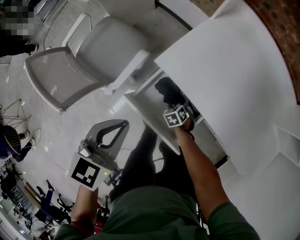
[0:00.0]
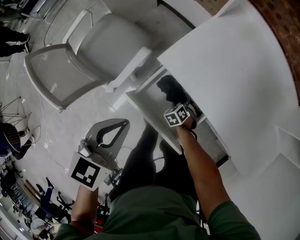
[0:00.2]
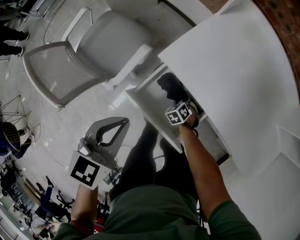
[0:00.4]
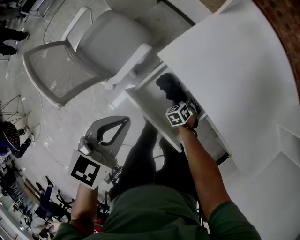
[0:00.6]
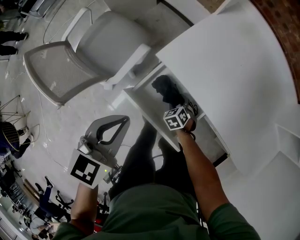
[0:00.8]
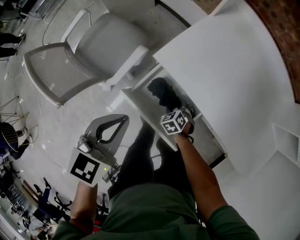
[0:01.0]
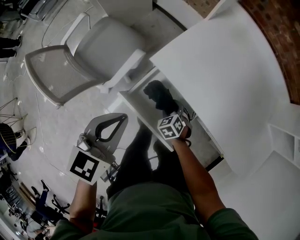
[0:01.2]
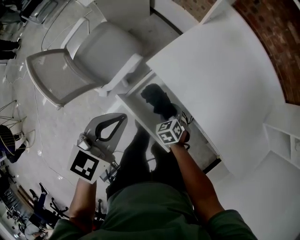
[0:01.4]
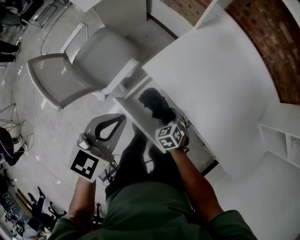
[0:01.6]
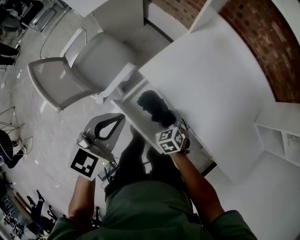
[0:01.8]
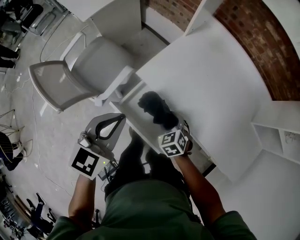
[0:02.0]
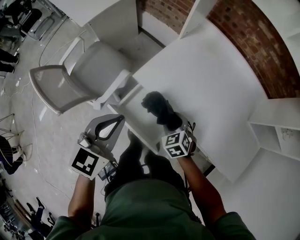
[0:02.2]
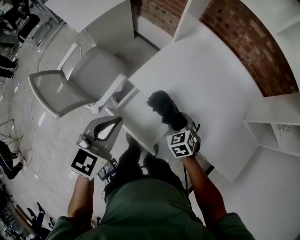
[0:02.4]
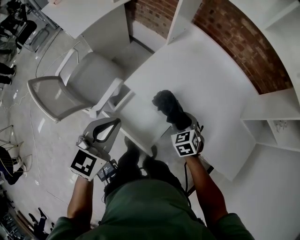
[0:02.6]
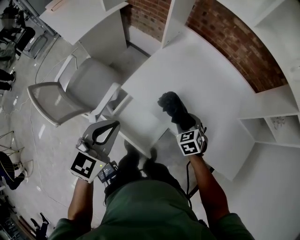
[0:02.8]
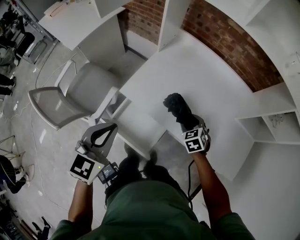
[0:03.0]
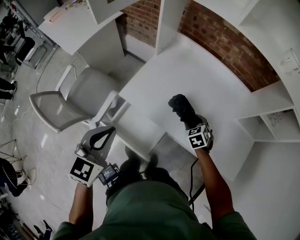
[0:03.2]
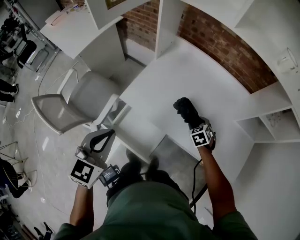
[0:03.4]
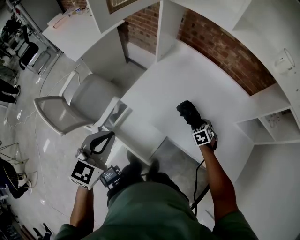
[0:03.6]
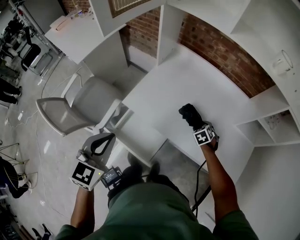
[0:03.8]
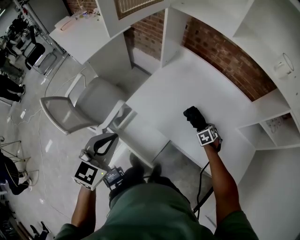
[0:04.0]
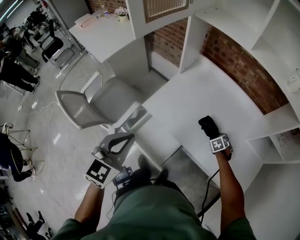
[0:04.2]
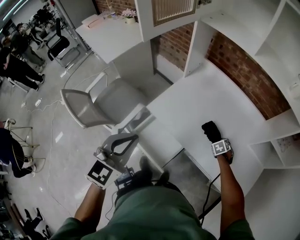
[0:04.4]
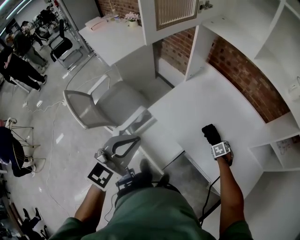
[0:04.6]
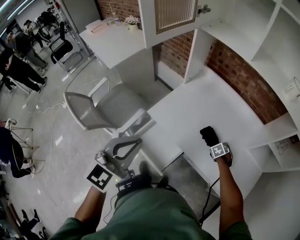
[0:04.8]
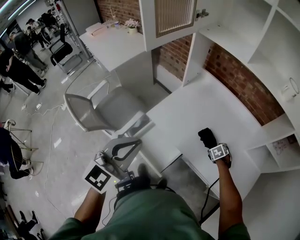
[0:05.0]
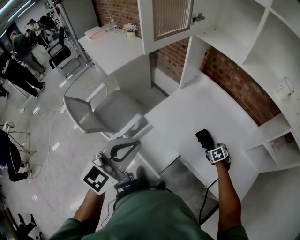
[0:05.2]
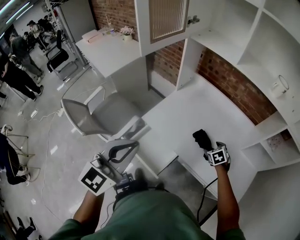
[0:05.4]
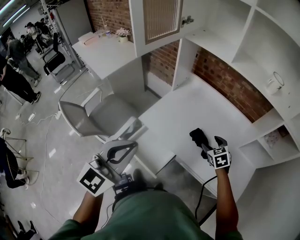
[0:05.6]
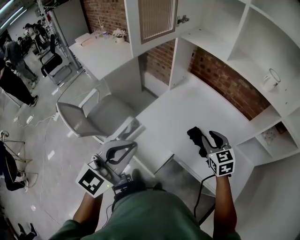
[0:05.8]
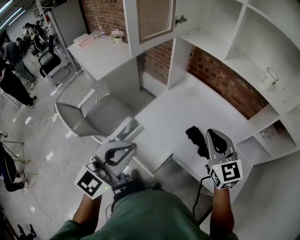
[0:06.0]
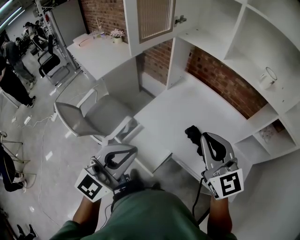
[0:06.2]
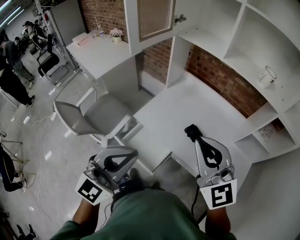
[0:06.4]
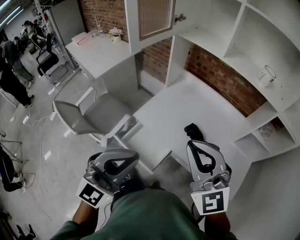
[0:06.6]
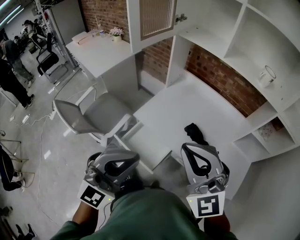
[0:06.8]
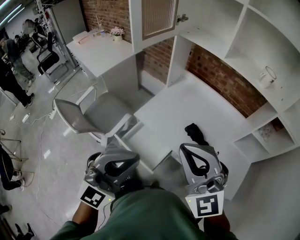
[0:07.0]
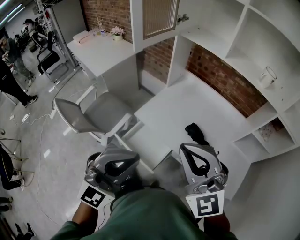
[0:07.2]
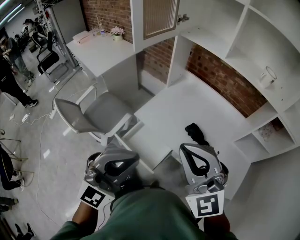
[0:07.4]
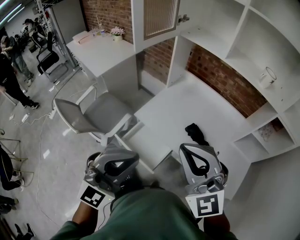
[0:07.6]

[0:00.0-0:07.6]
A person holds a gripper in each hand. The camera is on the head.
0:00.0 to 0:01.6: The left gripper ends up some 5 cm from where it was, while the right gripper is displaced upward by roughly 15 cm.
0:01.6 to 0:03.0: The left gripper moves upward and to the right, about 10 cm. The right gripper moves to the right and upward, approximately 25 cm.
0:03.0 to 0:04.6: The right gripper moves to the right and downward, approximately 15 cm, and rotates approximately 20 degrees. Meanwhile the left gripper is displaced upward and backward by about 10 cm.
0:04.6 to 0:06.0: The right gripper moves upward, some 40 cm, tilts its fingers some 60 degrees upward, and closes its fingers, while the left gripper ends up about 10 cm from where it was.
0:06.0 to 0:07.6: The left gripper is displaced backward by some 5 cm, and turns by roughly 20 degrees. Meanwhile the right gripper goes some 20 cm backward, to the left and upward, and swivels approximately 30 degrees.

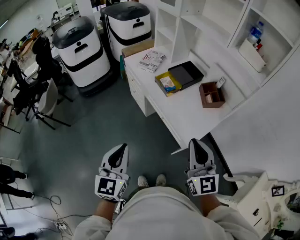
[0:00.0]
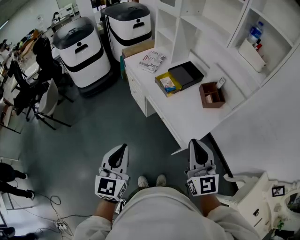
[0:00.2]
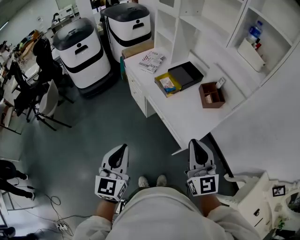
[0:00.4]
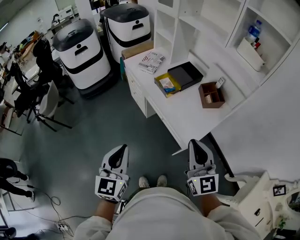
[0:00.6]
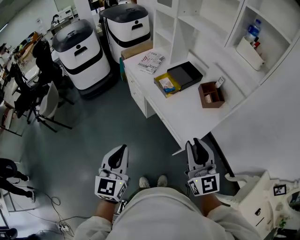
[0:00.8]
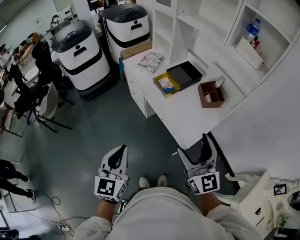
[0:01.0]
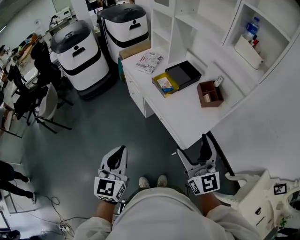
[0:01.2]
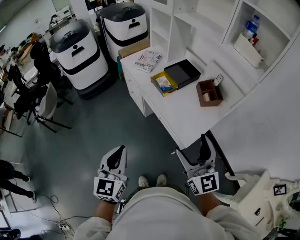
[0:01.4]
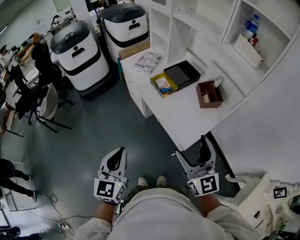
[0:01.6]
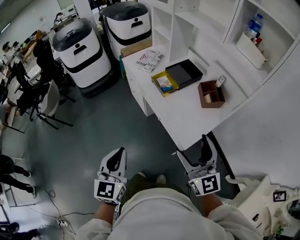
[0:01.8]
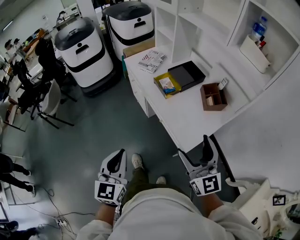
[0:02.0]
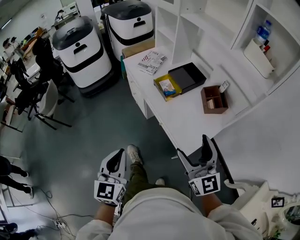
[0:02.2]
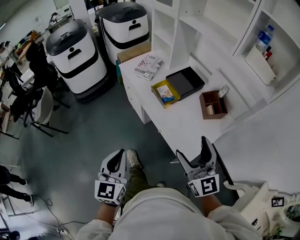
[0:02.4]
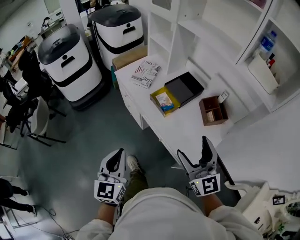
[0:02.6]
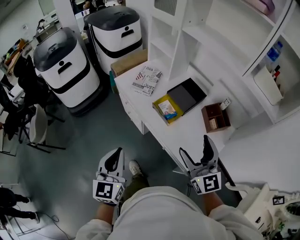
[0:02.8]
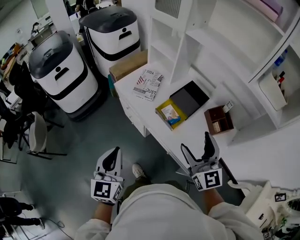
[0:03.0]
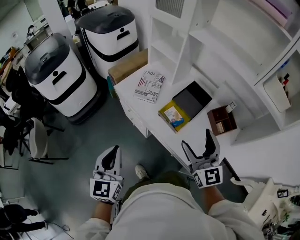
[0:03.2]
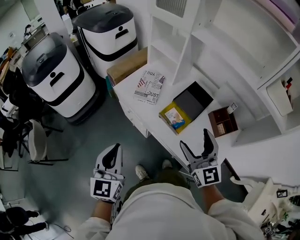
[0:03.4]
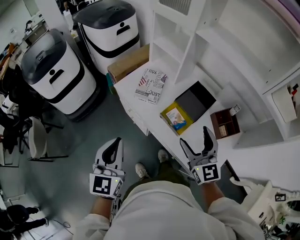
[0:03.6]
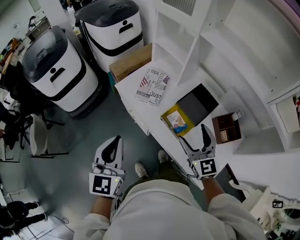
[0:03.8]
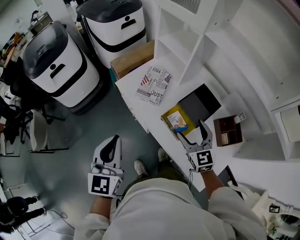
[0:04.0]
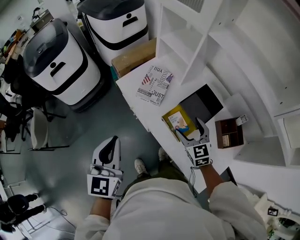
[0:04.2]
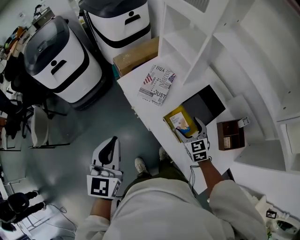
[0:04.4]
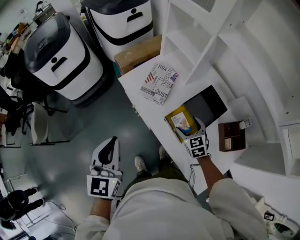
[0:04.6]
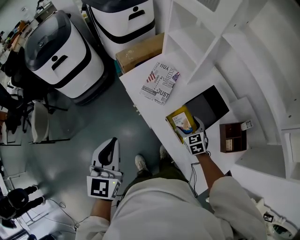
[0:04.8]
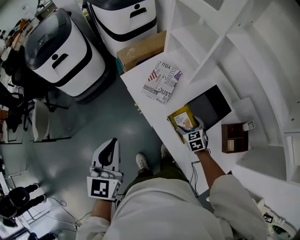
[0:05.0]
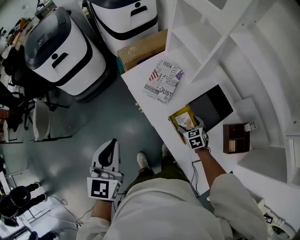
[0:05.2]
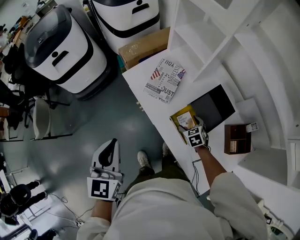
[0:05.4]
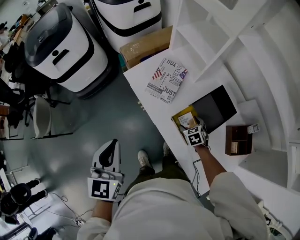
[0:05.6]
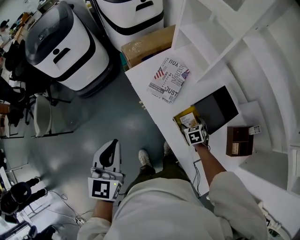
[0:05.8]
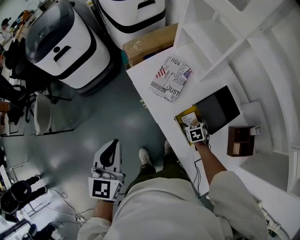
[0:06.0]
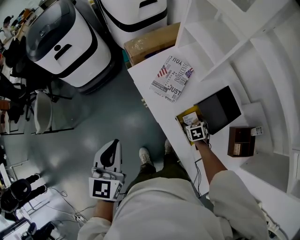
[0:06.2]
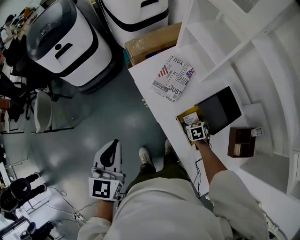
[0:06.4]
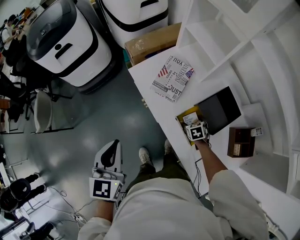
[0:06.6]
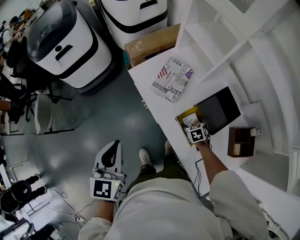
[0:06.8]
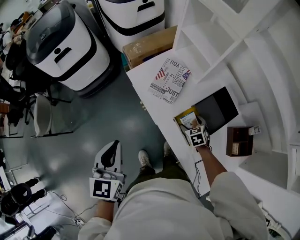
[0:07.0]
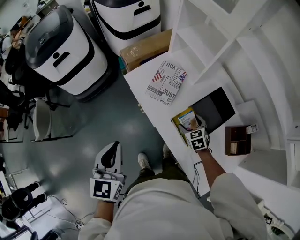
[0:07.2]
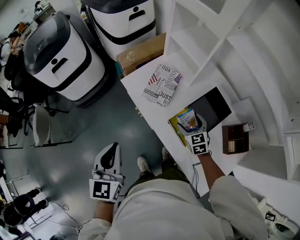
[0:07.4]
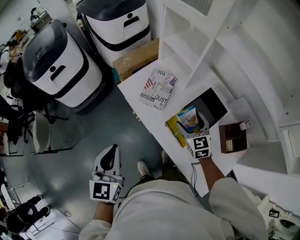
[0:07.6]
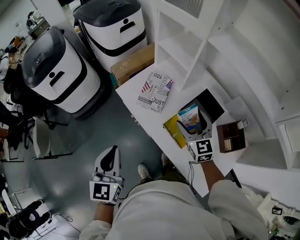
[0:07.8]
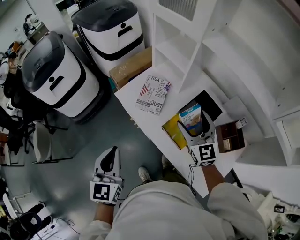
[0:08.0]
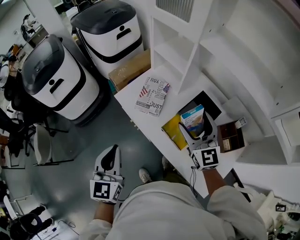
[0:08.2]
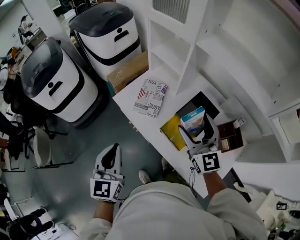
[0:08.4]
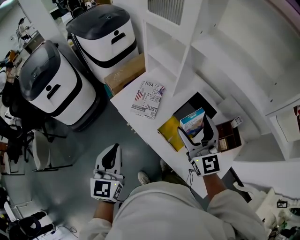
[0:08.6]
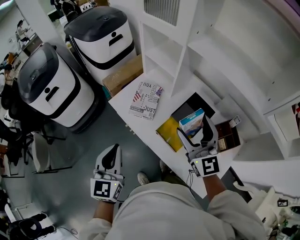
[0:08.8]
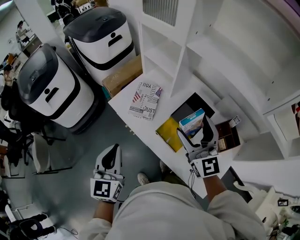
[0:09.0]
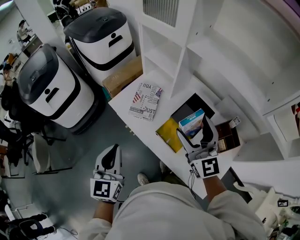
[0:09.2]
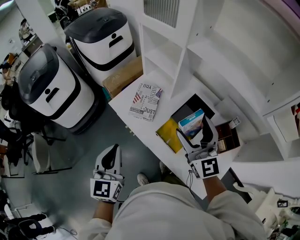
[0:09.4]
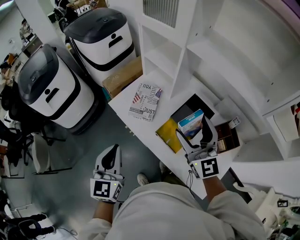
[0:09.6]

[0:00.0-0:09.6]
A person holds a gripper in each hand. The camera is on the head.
0:00.0 to 0:01.6: The right gripper opens up.
0:01.6 to 0:03.2: The two grippers go approximately 35 cm forward.
0:03.2 to 0:04.8: The left gripper moves forward, about 15 cm. The right gripper travels downward and forward by about 35 cm, and angles its fingers downward, by approximately 40 degrees.
0:04.8 to 0:06.4: The left gripper ends up about 5 cm from where it was, while the right gripper goes approximately 15 cm downward, and rotates roughly 20 degrees.
0:06.4 to 0:08.0: The right gripper heads upward, covering some 35 cm, and angles its fingers upward, by some 60 degrees, while the left gripper moves roughly 5 cm.
0:08.0 to 0:09.6: The right gripper shifts about 10 cm upward.

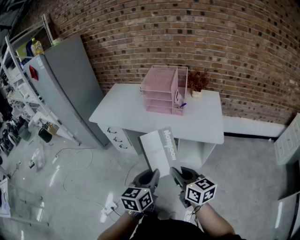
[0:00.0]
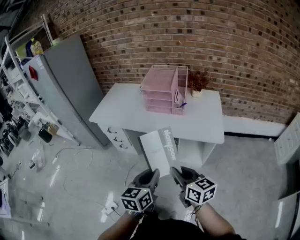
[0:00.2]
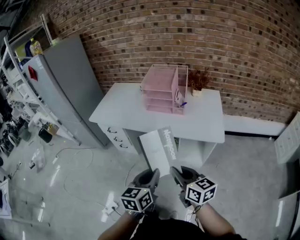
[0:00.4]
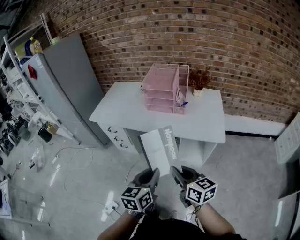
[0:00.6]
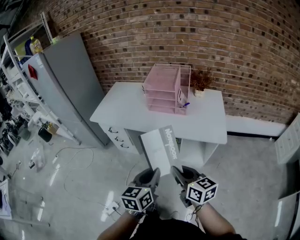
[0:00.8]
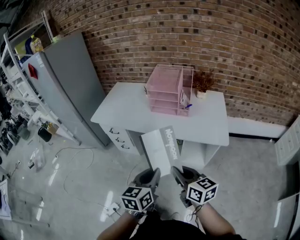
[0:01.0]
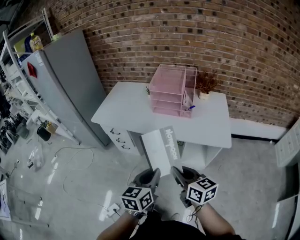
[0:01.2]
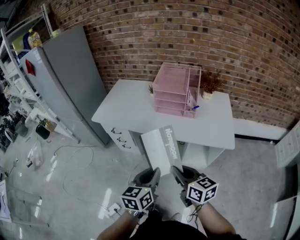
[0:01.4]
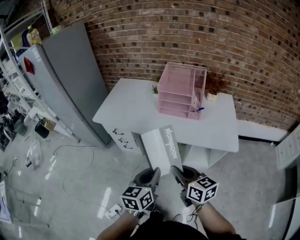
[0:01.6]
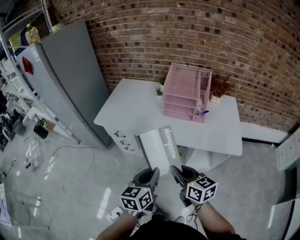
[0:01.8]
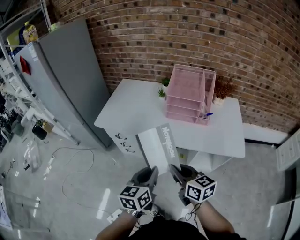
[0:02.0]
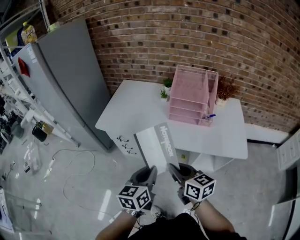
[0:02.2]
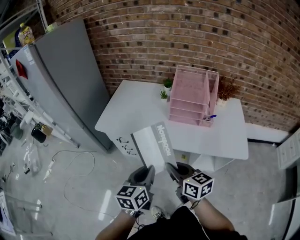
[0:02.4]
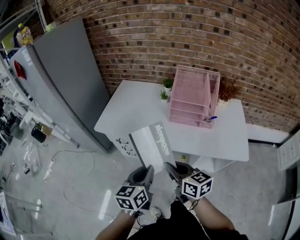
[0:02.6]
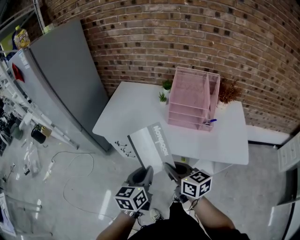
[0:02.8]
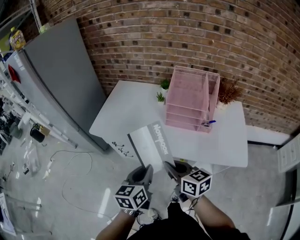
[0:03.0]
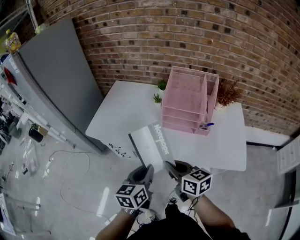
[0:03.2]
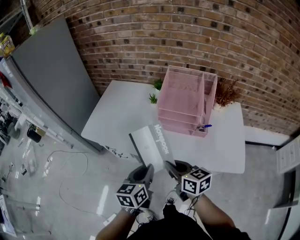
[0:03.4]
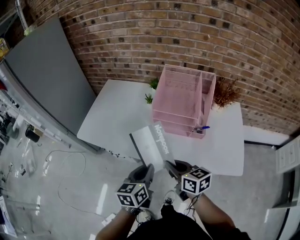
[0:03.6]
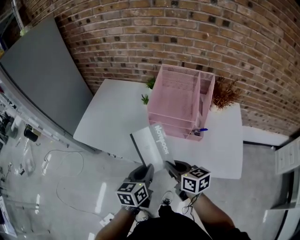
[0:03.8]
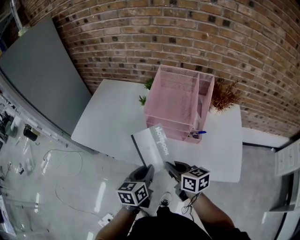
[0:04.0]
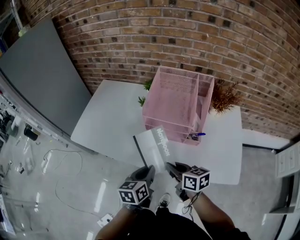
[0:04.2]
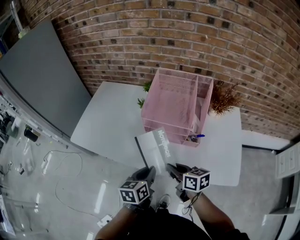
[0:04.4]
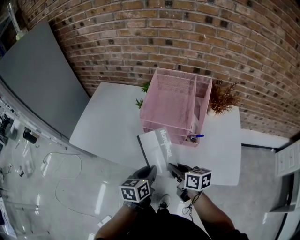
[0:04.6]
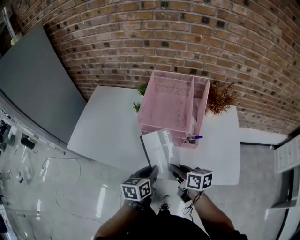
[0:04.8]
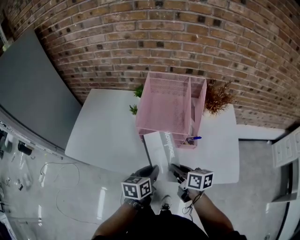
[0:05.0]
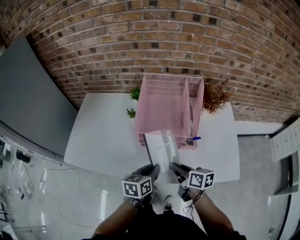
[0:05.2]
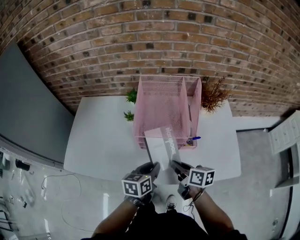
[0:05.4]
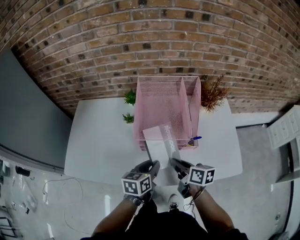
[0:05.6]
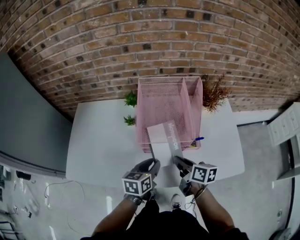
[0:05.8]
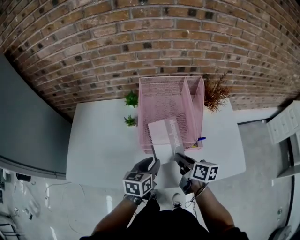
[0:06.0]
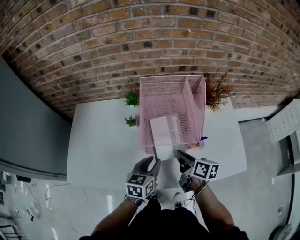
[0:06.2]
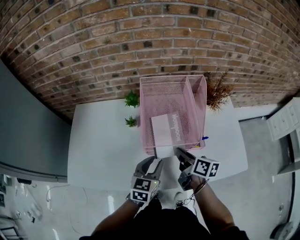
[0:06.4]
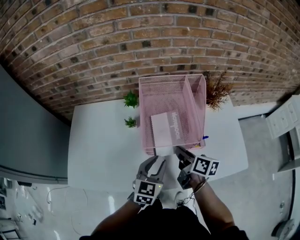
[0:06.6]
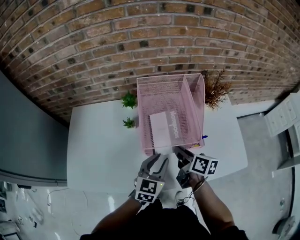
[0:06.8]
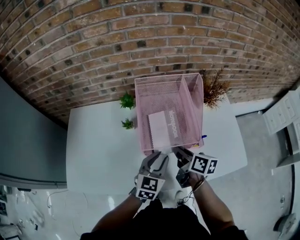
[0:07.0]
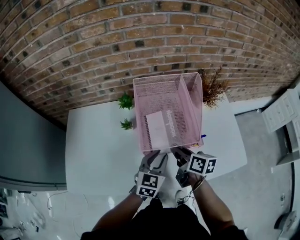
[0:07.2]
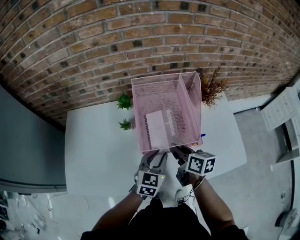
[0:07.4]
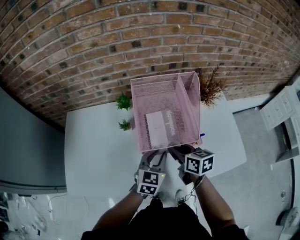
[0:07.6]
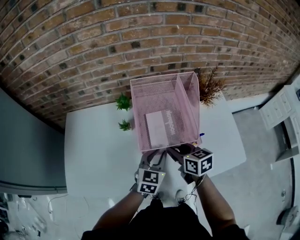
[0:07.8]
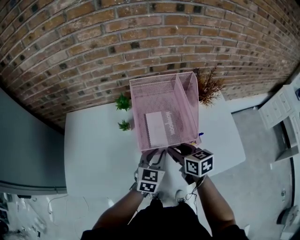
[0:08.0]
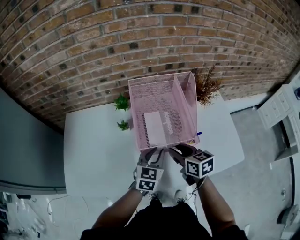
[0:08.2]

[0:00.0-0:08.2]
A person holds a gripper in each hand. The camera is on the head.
0:00.0 to 0:01.6: The two grippers go approximately 15 cm forward and to the left.
0:01.6 to 0:03.2: Both grippers travel together forward, approximately 20 cm.
0:03.2 to 0:05.0: The two grippers go approximately 20 cm to the right, forward and downward. The right gripper rotates approximately 30 degrees.
0:05.0 to 0:06.6: The two grippers go about 10 cm forward. The right gripper changes its angle by some 30 degrees. The left gripper rotates some 40 degrees.
0:06.6 to 0:08.2: The left gripper moves approximately 5 cm; the right gripper rotates roughly 30 degrees, and opens.
